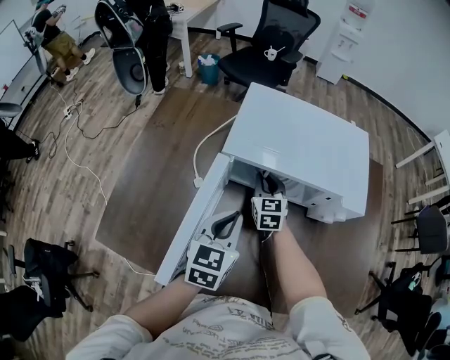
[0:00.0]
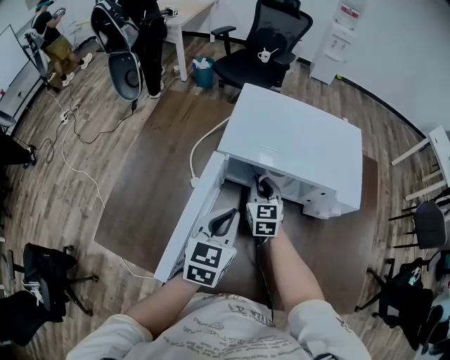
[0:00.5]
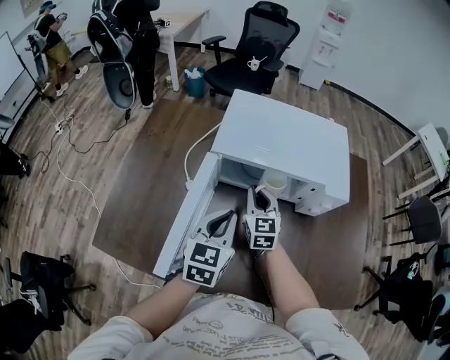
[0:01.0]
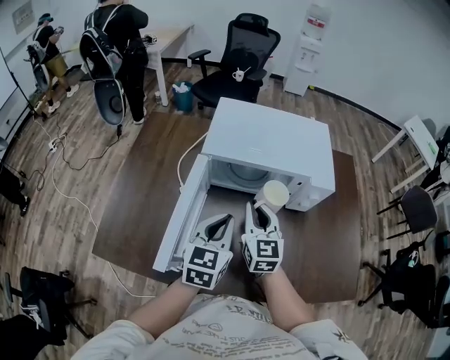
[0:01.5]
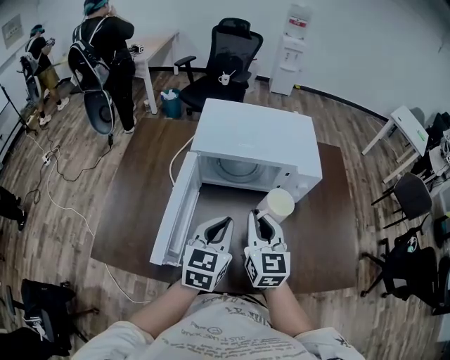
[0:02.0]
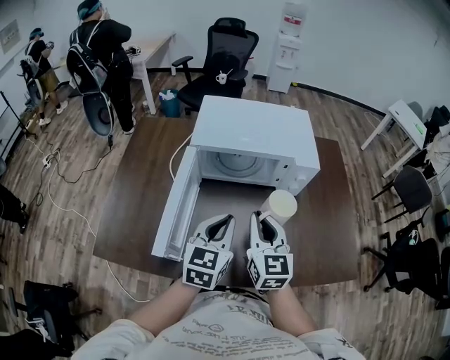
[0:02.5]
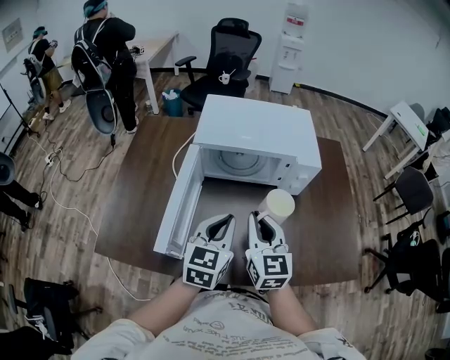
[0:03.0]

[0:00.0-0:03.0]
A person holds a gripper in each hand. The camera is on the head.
0.0 to 1.5 s: The right gripper goes roughly 20 cm backward and upward. Meanwhile the left gripper goes approximately 5 cm backward.
1.5 to 3.0 s: The left gripper travels backward by approximately 5 cm. Meanwhile the right gripper travels backward by approximately 10 cm.

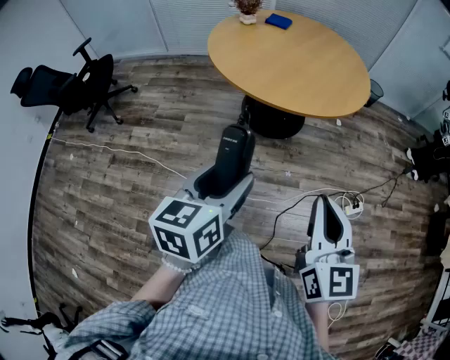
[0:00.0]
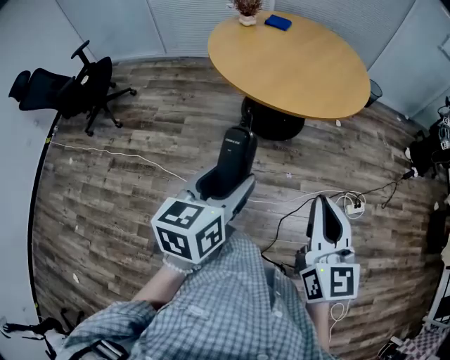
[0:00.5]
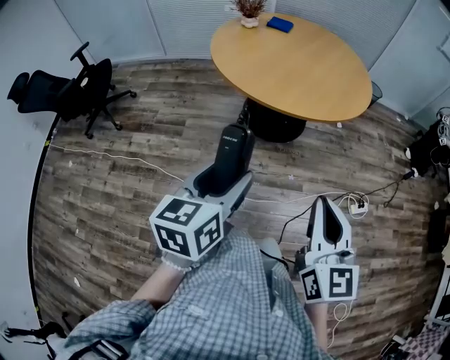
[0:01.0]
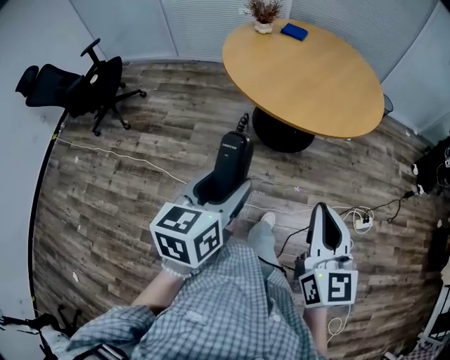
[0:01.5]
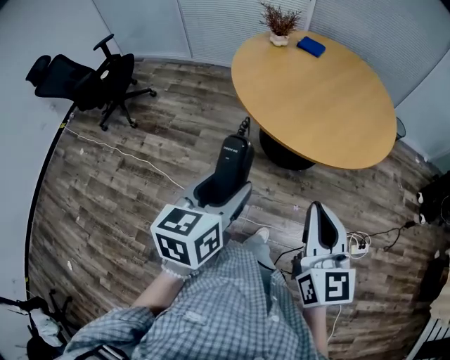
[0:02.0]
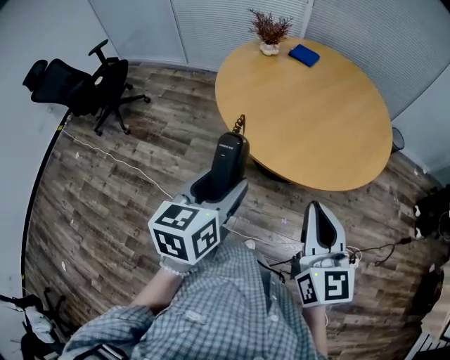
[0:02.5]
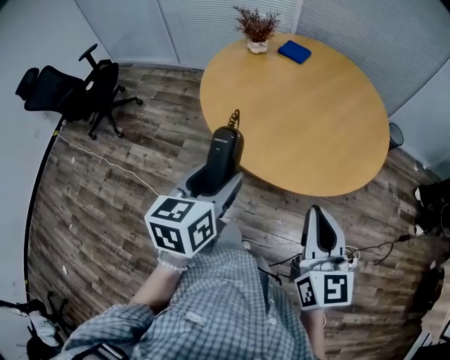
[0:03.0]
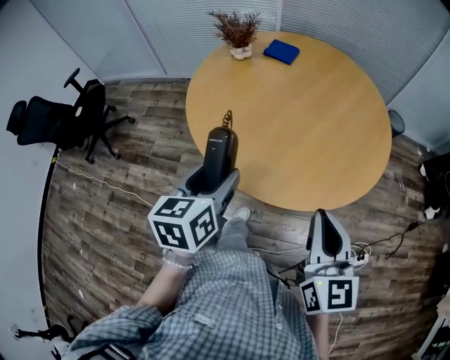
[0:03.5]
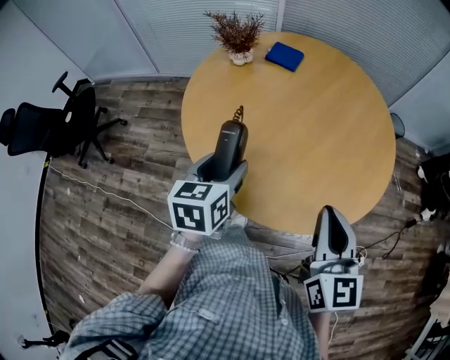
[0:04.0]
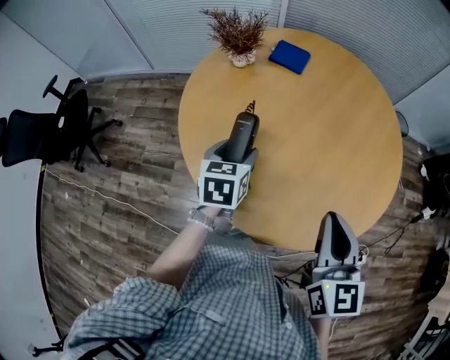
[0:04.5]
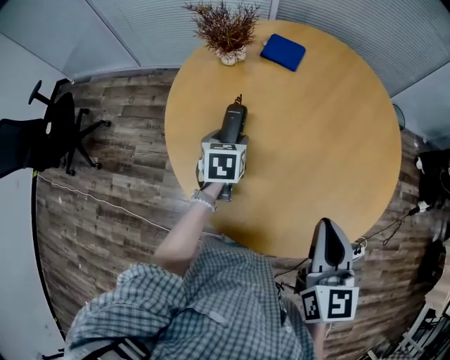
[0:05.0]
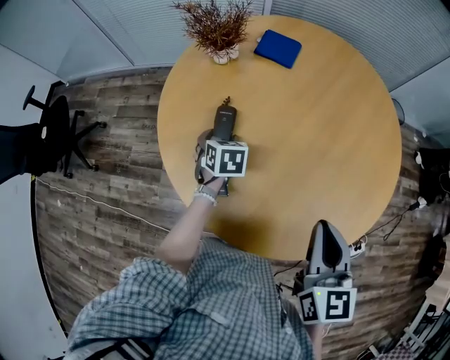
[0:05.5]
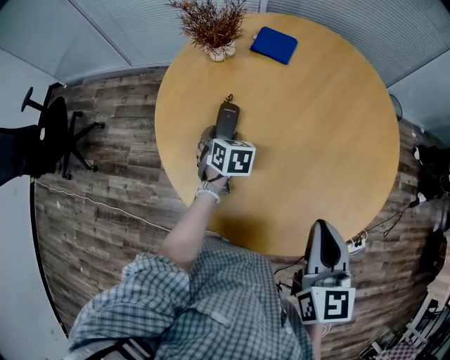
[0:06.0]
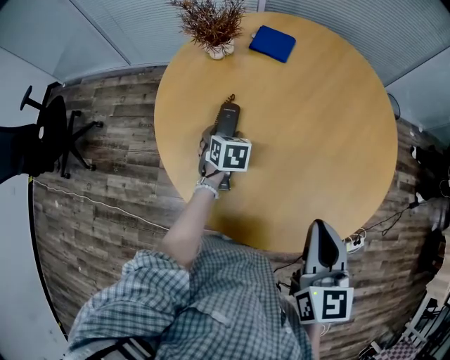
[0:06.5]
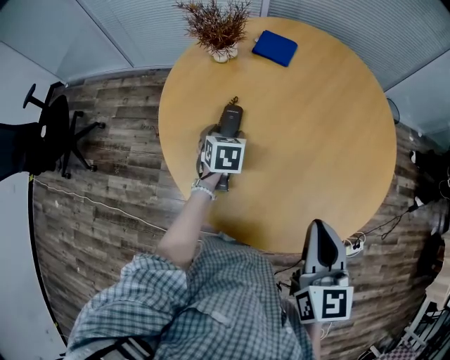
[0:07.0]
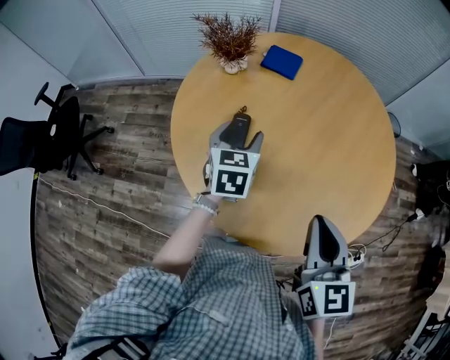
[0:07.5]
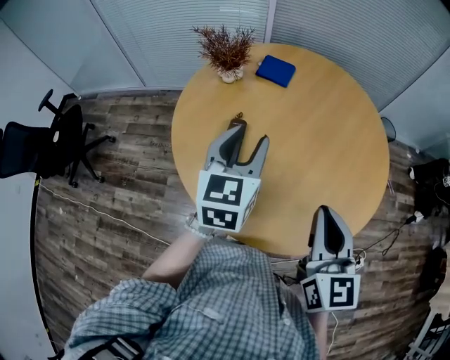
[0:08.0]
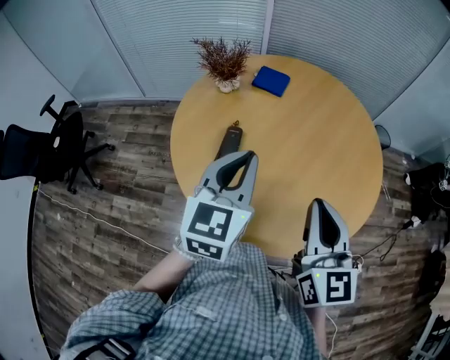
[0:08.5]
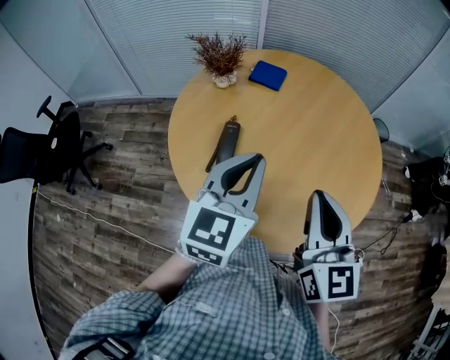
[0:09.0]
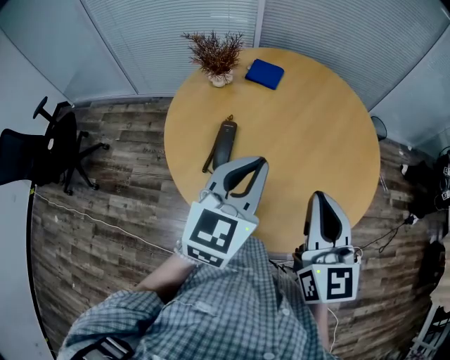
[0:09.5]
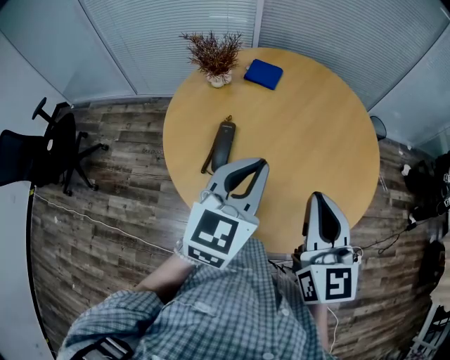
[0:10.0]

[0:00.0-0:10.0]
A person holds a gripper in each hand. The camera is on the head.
0.0 to 2.0 s: The right gripper is displaced forward by about 15 cm; the left gripper shifts some 15 cm forward and to the left.
2.0 to 4.0 s: The grippers both shift forward by about 35 cm.
4.0 to 6.0 s: The right gripper shifts approximately 10 cm forward and downward. The left gripper travels forward and downward by about 30 cm, and rotates roughly 30 degrees.
6.0 to 8.0 s: The right gripper moves upward, about 5 cm; the left gripper goes some 25 cm upward, and points its fingers roughly 40 degrees further upward.
8.0 to 10.0 s: The left gripper moves backward and to the right, roughly 10 cm, and closes.

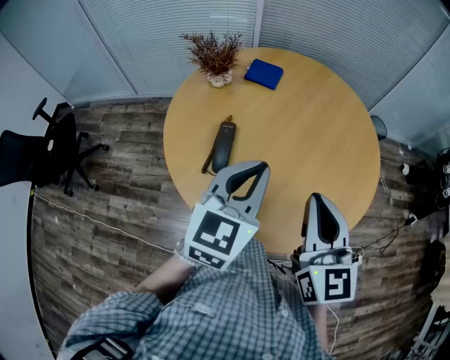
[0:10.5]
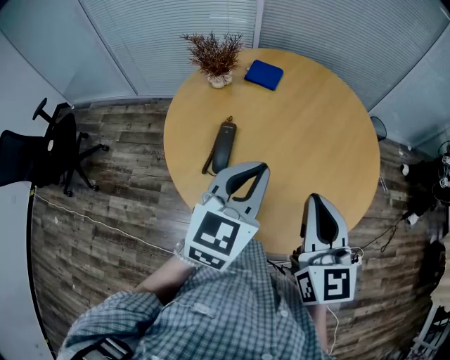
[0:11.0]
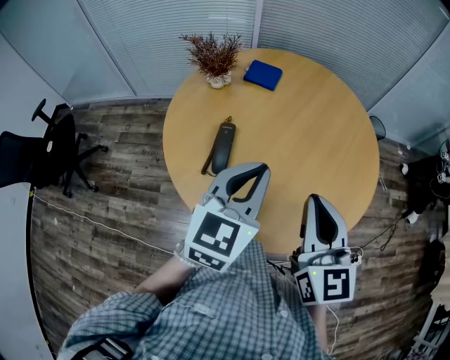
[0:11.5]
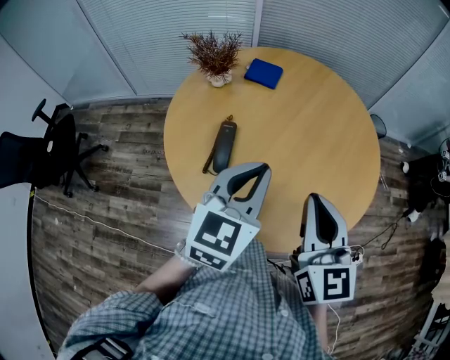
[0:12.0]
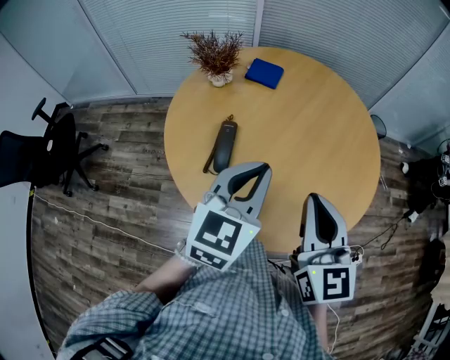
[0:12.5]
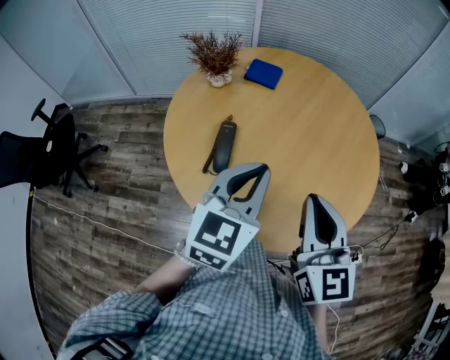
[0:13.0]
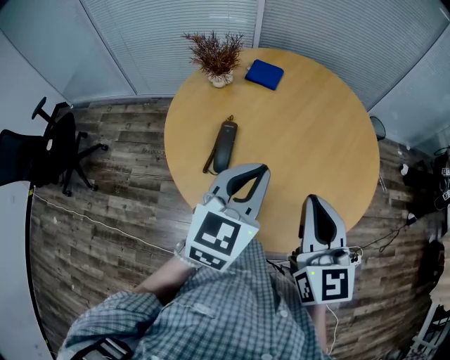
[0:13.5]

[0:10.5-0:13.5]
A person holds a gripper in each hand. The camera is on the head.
10.5 to 12.0 s: Neither gripper changes place.
12.0 to 13.5 s: Neither gripper changes place.

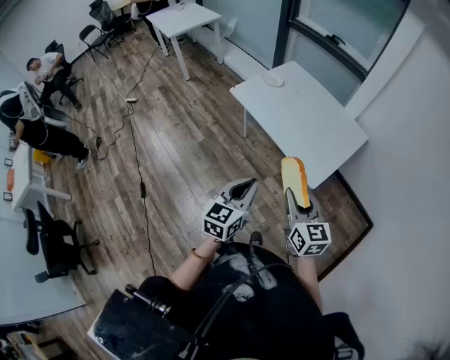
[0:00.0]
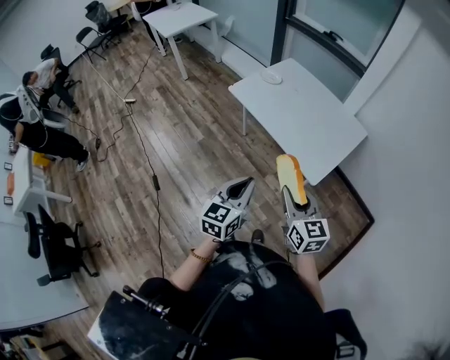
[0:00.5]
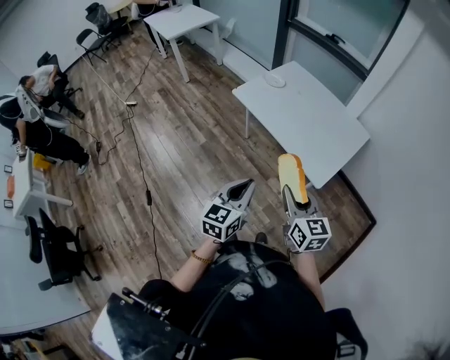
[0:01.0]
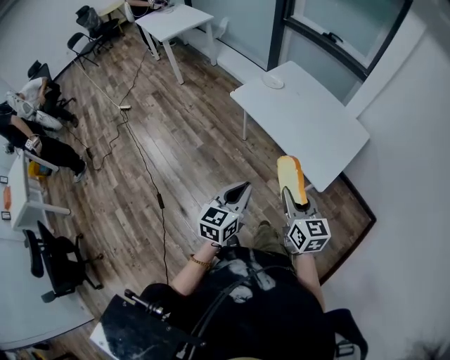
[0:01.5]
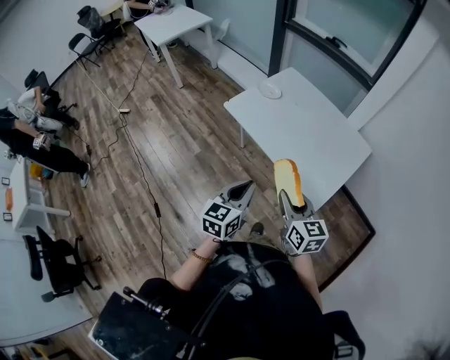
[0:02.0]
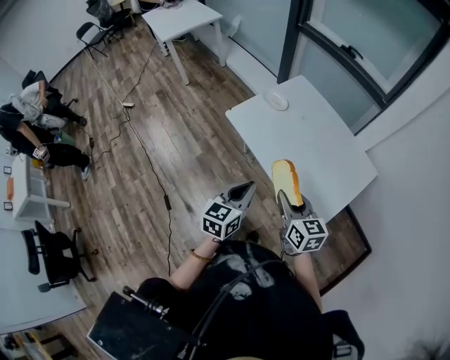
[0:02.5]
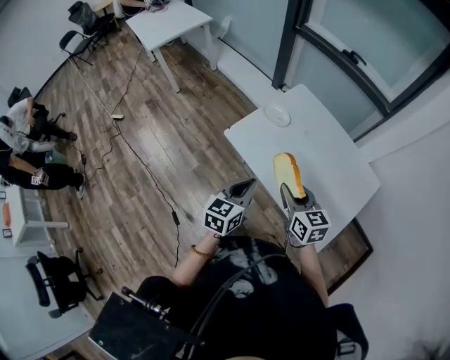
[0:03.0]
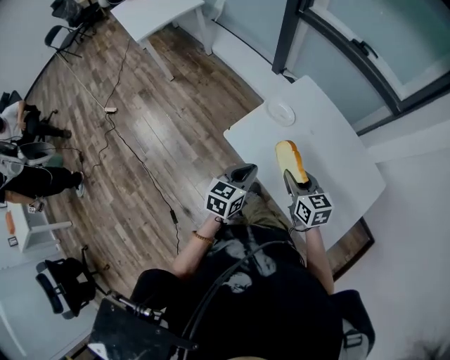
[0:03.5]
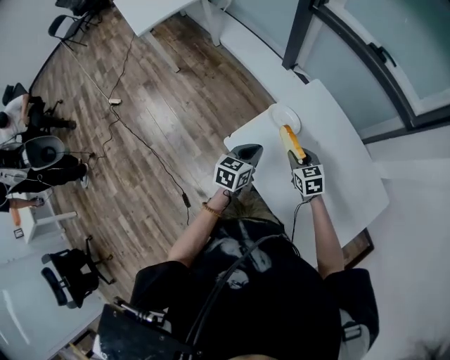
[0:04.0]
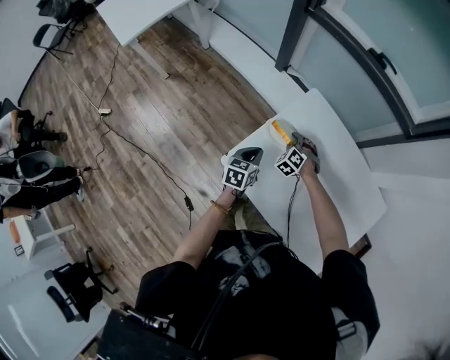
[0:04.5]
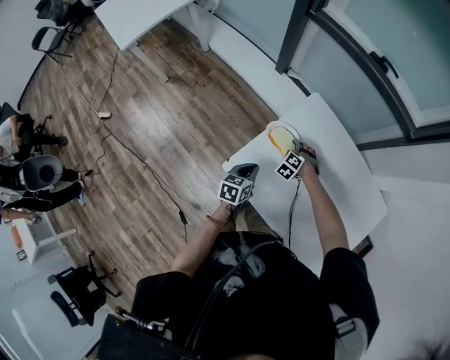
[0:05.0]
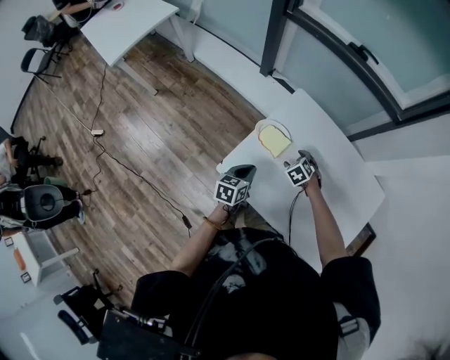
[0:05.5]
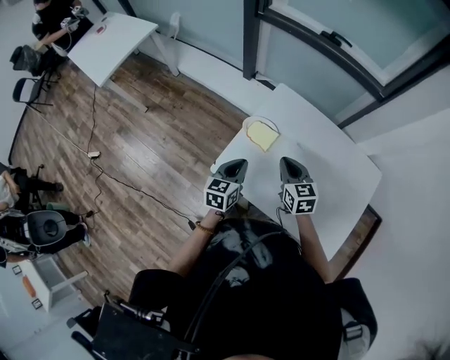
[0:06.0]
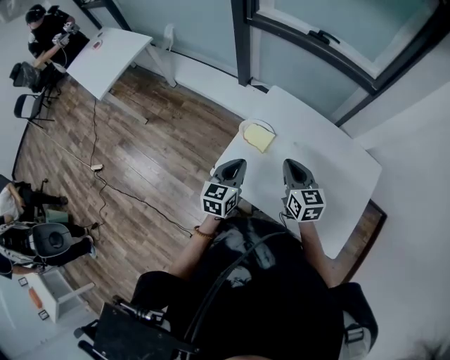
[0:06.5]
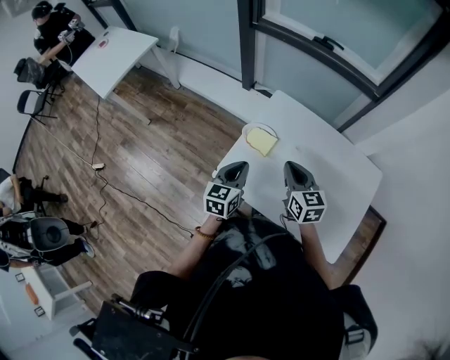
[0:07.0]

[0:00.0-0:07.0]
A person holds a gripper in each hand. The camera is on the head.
0.0 to 2.0 s: Both grippers travel together forward, some 15 cm.
2.0 to 3.5 s: Both grippers travel together forward, about 35 cm.
3.5 to 5.0 s: The right gripper heads forward and downward, covering some 35 cm, tips its fingers downward by about 40 degrees, and opens its fingers. The left gripper shifts roughly 25 cm forward and downward.
5.0 to 7.0 s: The right gripper heads upward and backward, covering approximately 30 cm, rotates around the line of its fingers by some 70 degrees, clockwise from behind, and closes. The left gripper moves upward, about 15 cm, and swivels roughly 20 degrees.

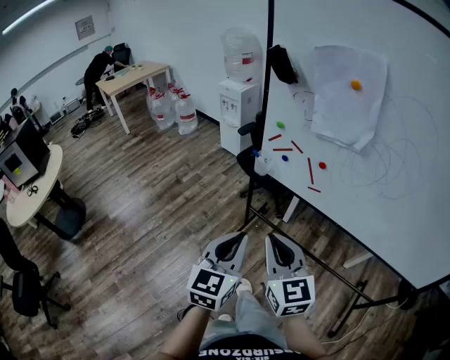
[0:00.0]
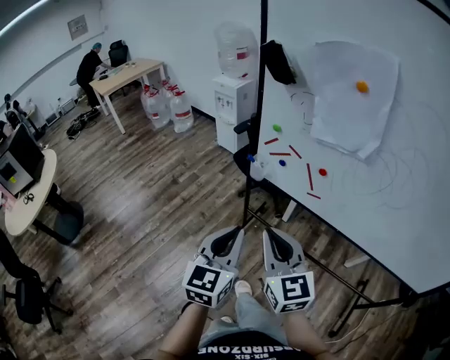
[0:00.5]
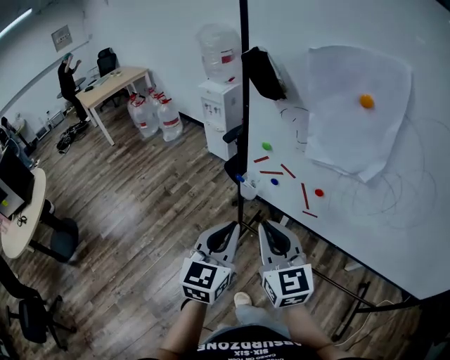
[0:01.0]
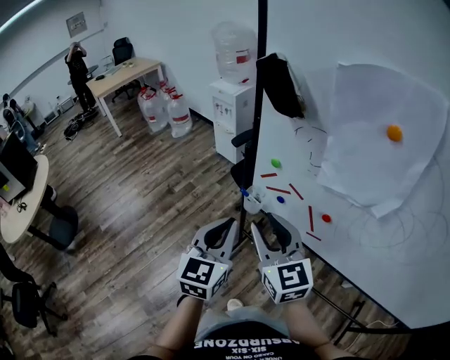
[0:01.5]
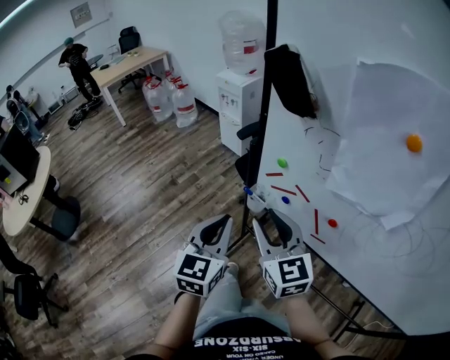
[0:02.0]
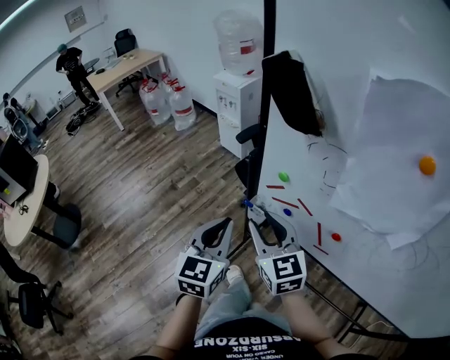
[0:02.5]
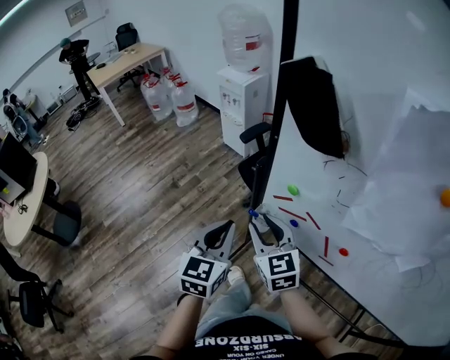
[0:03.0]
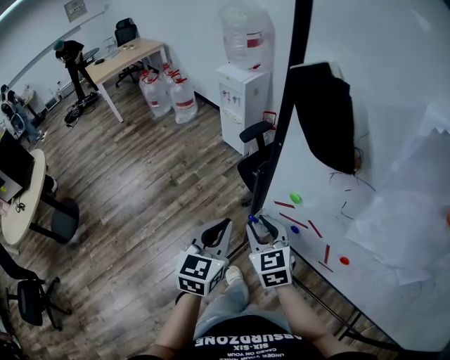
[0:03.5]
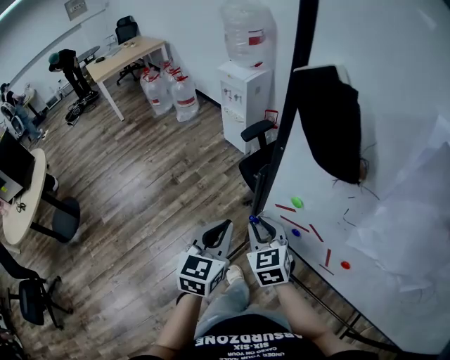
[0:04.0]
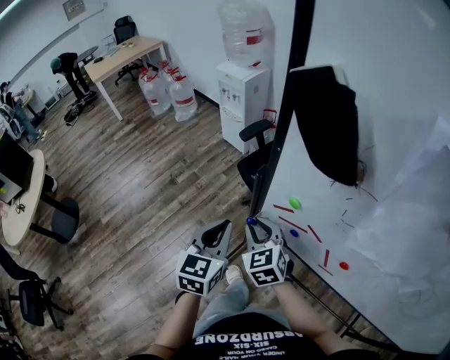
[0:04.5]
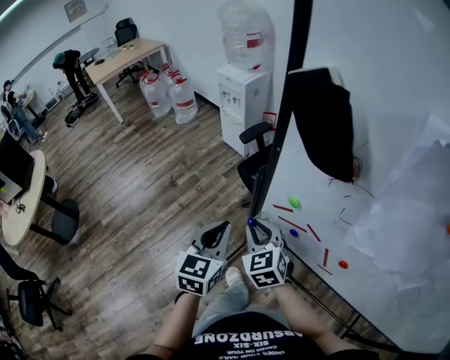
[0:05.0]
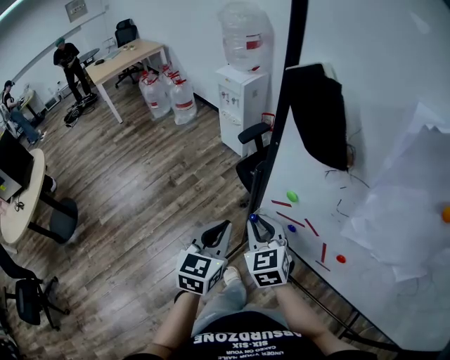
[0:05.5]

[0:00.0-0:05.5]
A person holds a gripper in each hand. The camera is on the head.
0.0 to 2.0 s: Both grippers travel together forward, about 30 cm. The right gripper opens.
2.0 to 3.5 s: The left gripper goes roughly 10 cm forward, while the right gripper goes some 15 cm forward and downward.
3.5 to 5.5 s: There are only small adjustments of the grippers.
